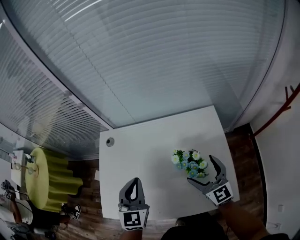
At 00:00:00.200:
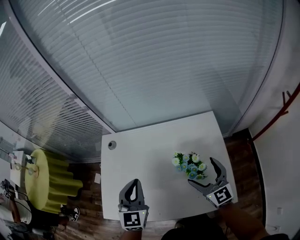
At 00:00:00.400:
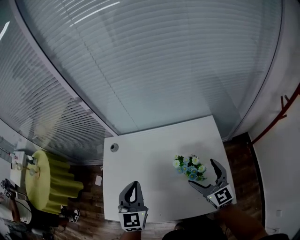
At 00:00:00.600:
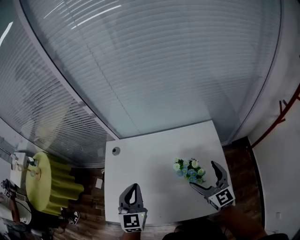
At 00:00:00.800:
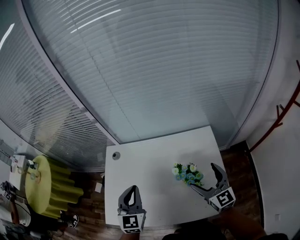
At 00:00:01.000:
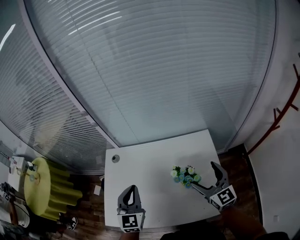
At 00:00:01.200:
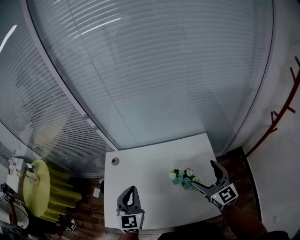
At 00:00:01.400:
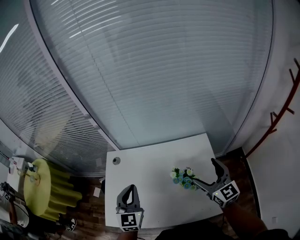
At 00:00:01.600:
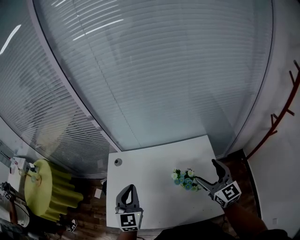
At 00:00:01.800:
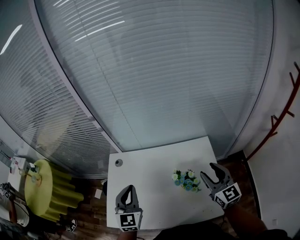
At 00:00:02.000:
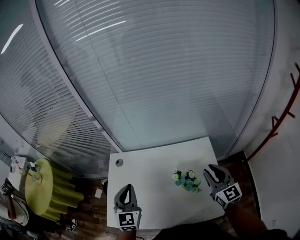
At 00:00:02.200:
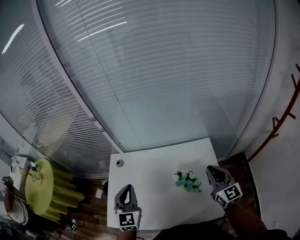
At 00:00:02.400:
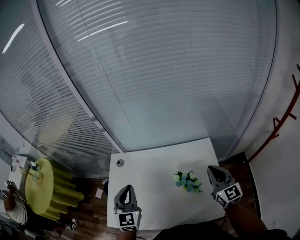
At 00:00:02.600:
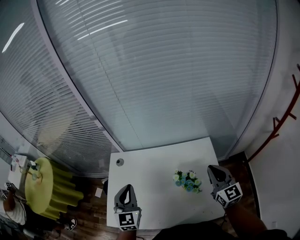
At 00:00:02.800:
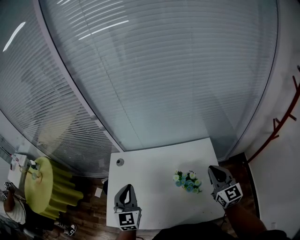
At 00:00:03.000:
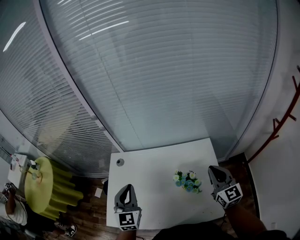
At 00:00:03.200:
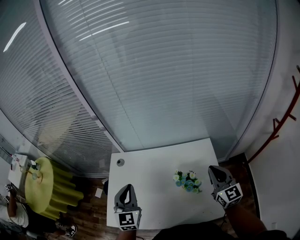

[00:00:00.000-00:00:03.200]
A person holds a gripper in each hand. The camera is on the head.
00:00:00.000 to 00:00:01.600: The left gripper moves upward, roughly 10 cm, while the right gripper travels upward by about 15 cm.
00:00:01.600 to 00:00:03.200: The right gripper closes.

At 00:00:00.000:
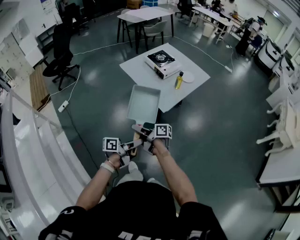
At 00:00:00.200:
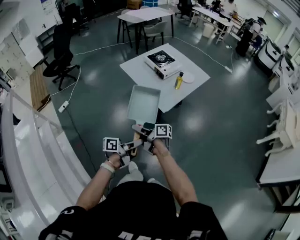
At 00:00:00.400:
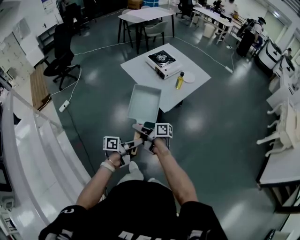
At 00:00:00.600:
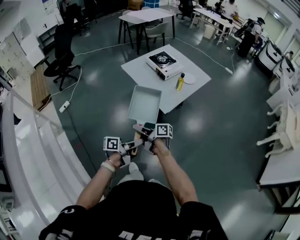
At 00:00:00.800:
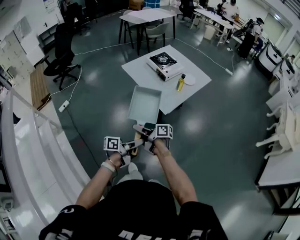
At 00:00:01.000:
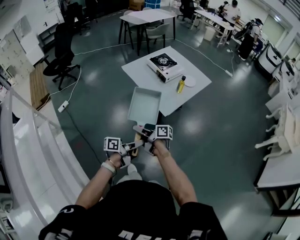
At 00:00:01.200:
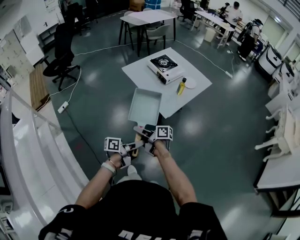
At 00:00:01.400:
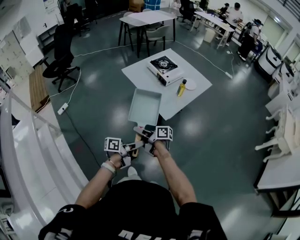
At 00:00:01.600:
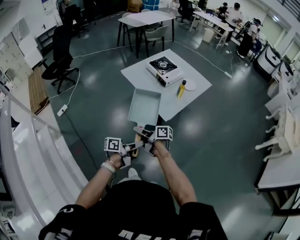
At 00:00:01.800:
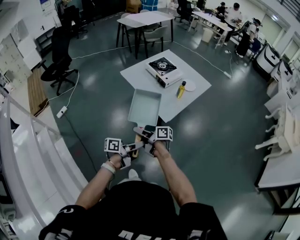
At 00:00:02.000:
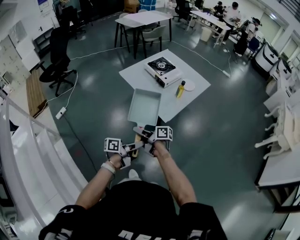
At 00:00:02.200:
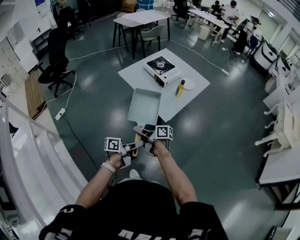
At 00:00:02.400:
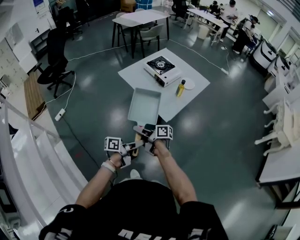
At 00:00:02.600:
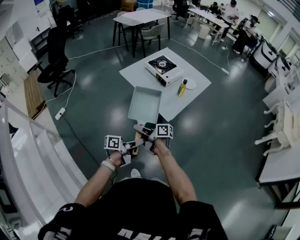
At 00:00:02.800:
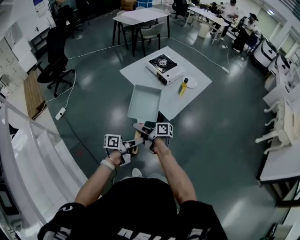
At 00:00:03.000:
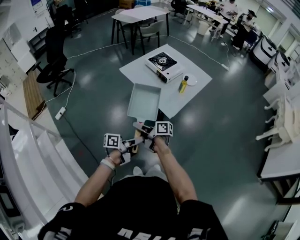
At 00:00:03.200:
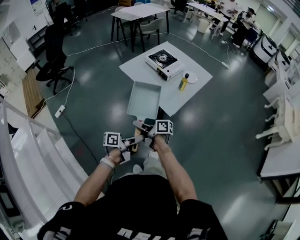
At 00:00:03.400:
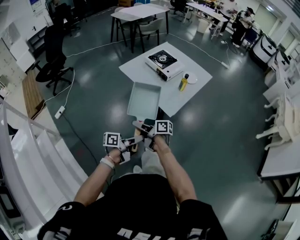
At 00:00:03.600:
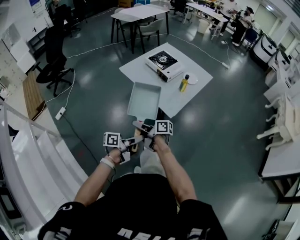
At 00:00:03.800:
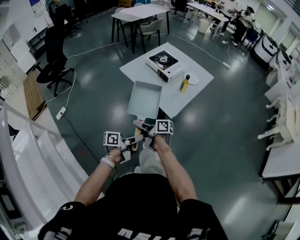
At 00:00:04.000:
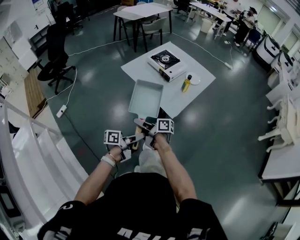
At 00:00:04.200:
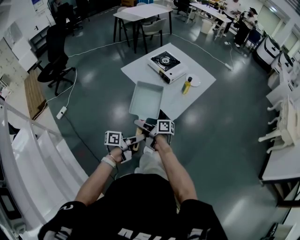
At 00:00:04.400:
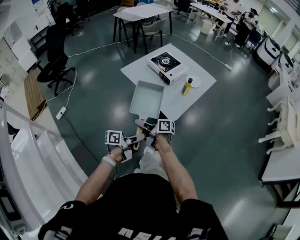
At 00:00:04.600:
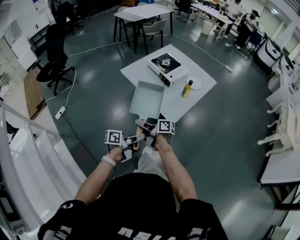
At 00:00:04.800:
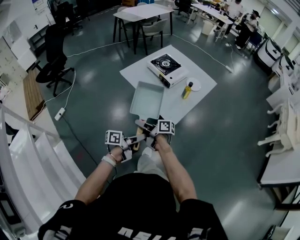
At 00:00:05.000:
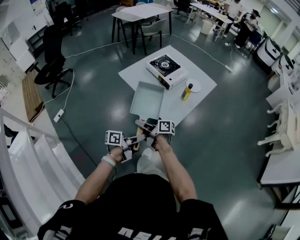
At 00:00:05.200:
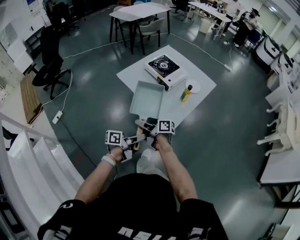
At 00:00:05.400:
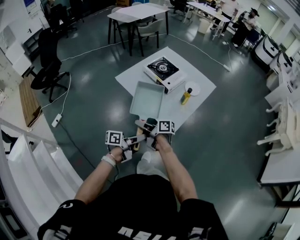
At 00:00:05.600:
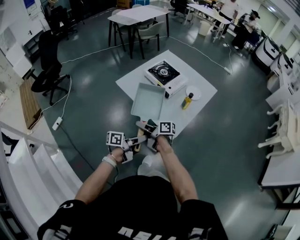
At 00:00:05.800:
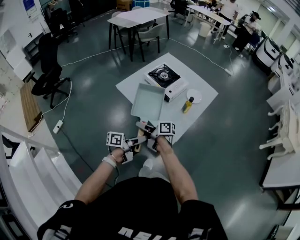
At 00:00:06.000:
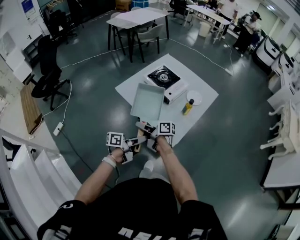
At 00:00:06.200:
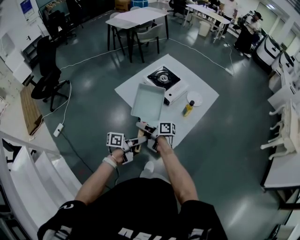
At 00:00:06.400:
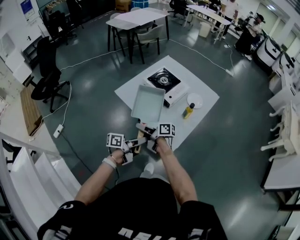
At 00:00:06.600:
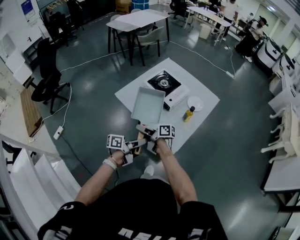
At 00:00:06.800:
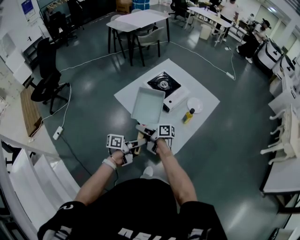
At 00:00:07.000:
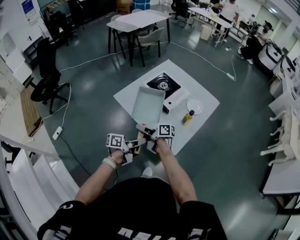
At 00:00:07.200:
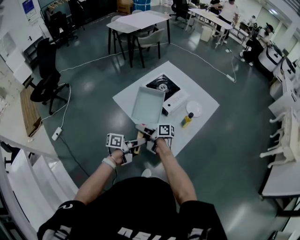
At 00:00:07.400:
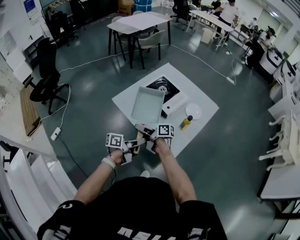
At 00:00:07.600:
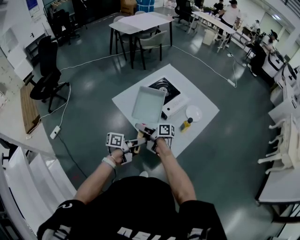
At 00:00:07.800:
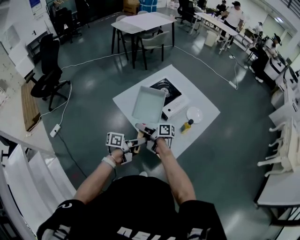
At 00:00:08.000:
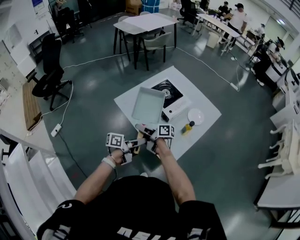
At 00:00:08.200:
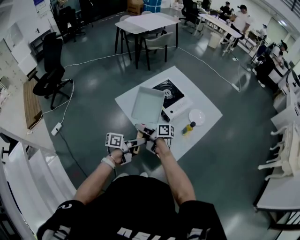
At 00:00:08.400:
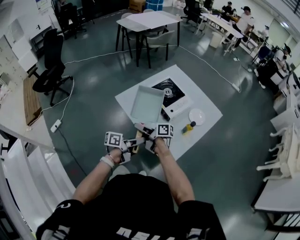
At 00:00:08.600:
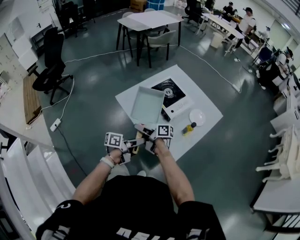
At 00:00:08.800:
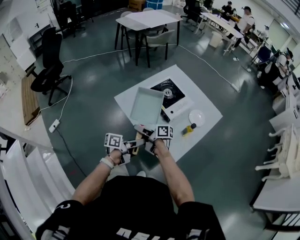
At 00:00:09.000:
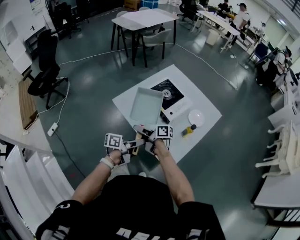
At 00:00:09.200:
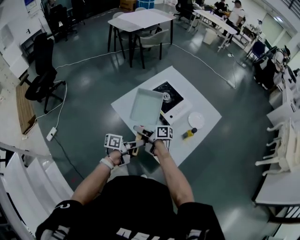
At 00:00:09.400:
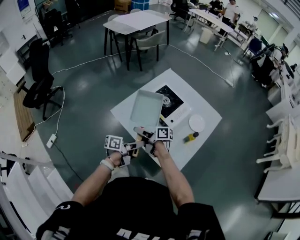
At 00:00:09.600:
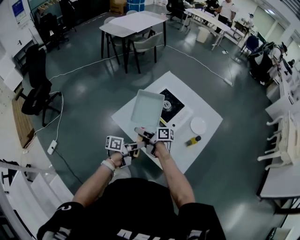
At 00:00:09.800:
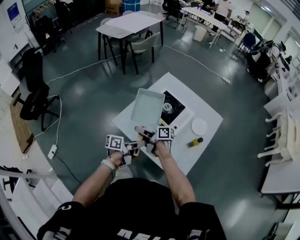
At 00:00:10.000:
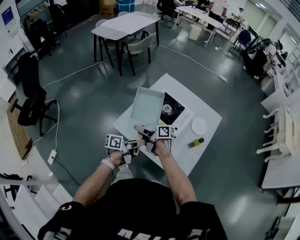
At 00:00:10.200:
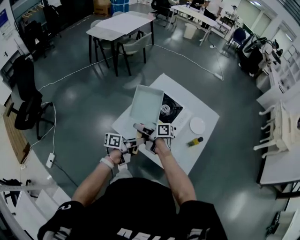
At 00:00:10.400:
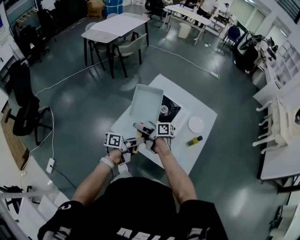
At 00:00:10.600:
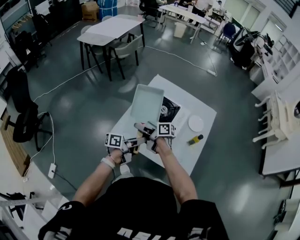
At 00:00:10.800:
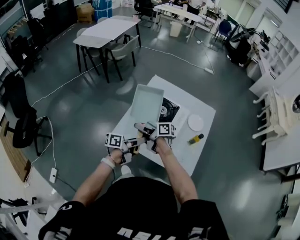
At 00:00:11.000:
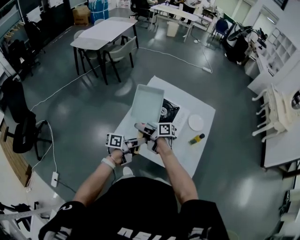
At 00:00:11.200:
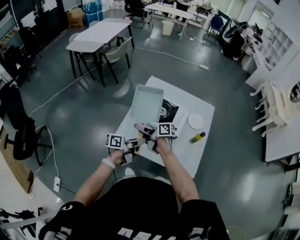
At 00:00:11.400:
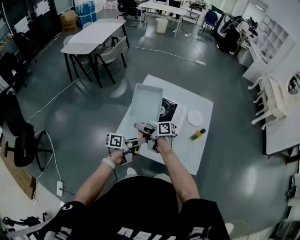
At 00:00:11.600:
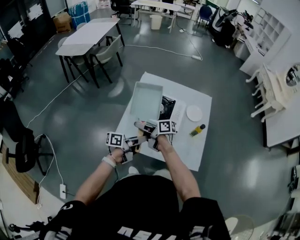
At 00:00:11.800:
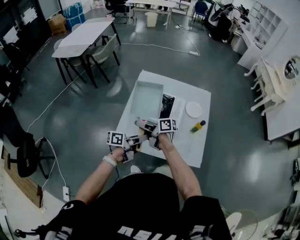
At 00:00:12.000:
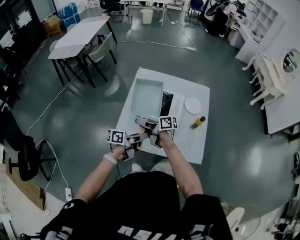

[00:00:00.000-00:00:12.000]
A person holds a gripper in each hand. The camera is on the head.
00:00:00.000 to 00:00:01.600: Both grippers move forward, some 5 cm.
00:00:01.600 to 00:00:03.000: The right gripper ends up about 5 cm from where it was, while the left gripper shifts some 5 cm to the left.
00:00:03.000 to 00:00:04.400: The two grippers go approximately 5 cm forward.
00:00:04.400 to 00:00:06.000: The right gripper moves roughly 20 cm. Meanwhile the left gripper shifts by about 20 cm.
00:00:06.000 to 00:00:07.600: Both grippers move forward, some 10 cm.
00:00:07.600 to 00:00:09.000: The right gripper moves approximately 5 cm. Meanwhile the left gripper ends up roughly 5 cm from where it was.
00:00:09.000 to 00:00:10.400: The left gripper changes place by approximately 20 cm, while the right gripper ends up about 20 cm from where it was.
00:00:10.400 to 00:00:12.000: The left gripper ends up some 5 cm from where it was. Meanwhile the right gripper ends up approximately 5 cm from where it was.

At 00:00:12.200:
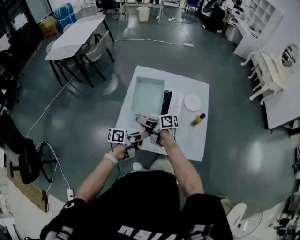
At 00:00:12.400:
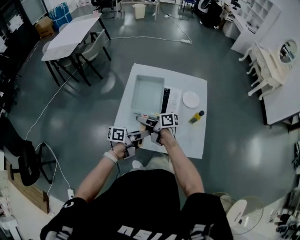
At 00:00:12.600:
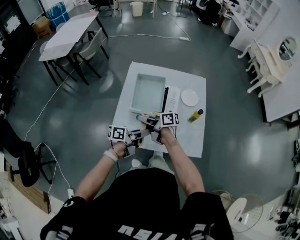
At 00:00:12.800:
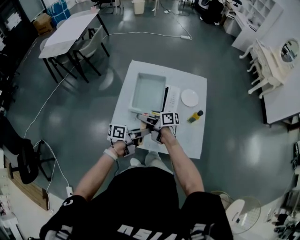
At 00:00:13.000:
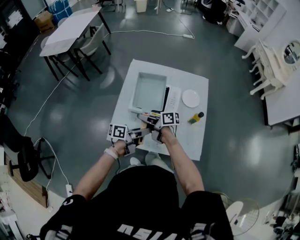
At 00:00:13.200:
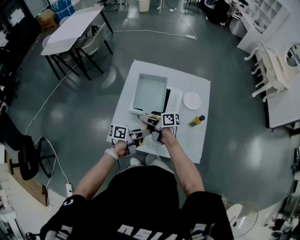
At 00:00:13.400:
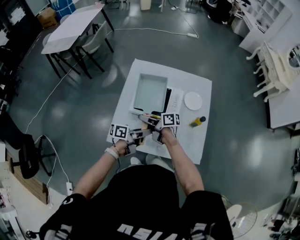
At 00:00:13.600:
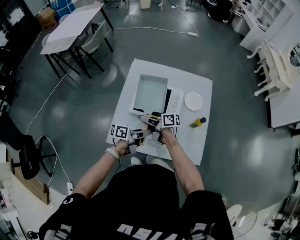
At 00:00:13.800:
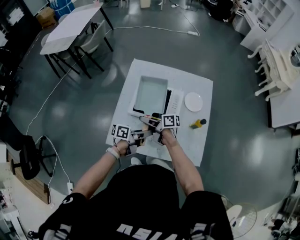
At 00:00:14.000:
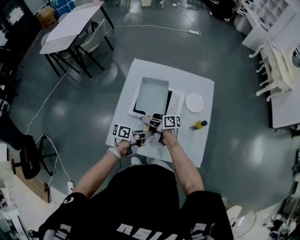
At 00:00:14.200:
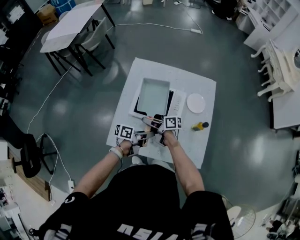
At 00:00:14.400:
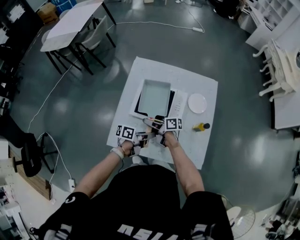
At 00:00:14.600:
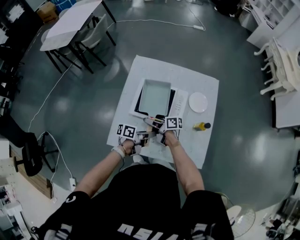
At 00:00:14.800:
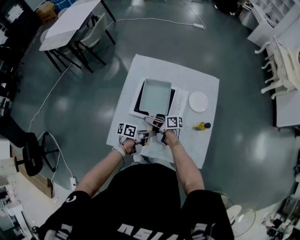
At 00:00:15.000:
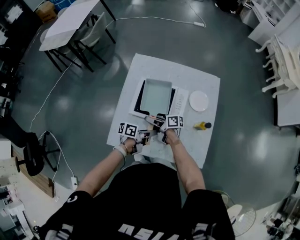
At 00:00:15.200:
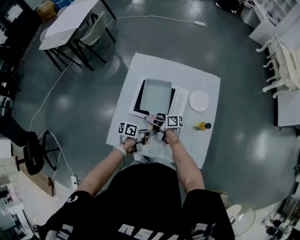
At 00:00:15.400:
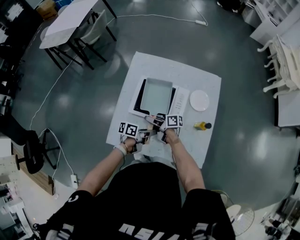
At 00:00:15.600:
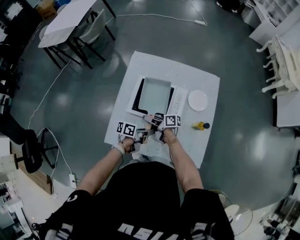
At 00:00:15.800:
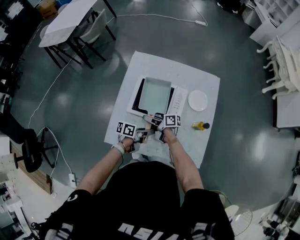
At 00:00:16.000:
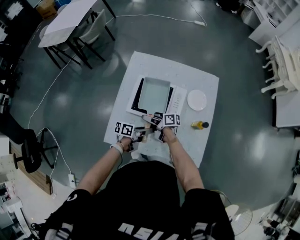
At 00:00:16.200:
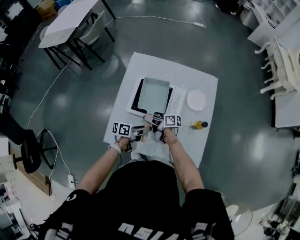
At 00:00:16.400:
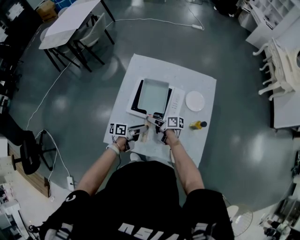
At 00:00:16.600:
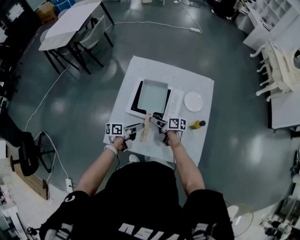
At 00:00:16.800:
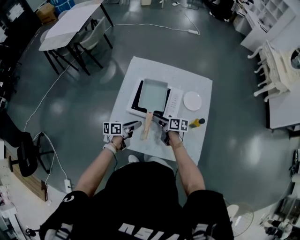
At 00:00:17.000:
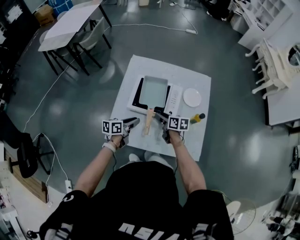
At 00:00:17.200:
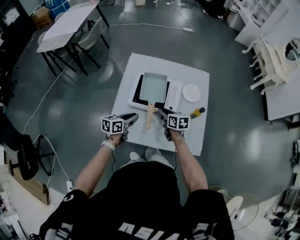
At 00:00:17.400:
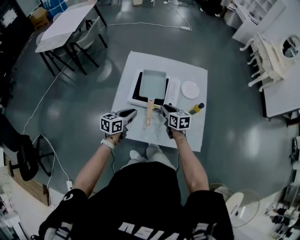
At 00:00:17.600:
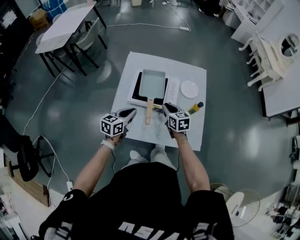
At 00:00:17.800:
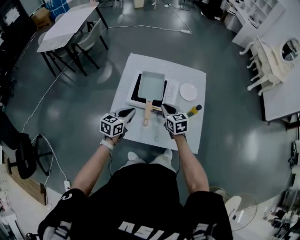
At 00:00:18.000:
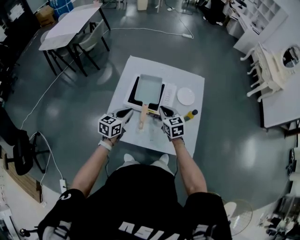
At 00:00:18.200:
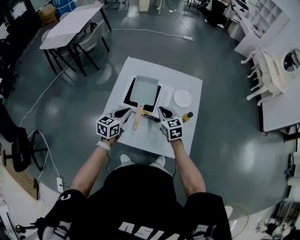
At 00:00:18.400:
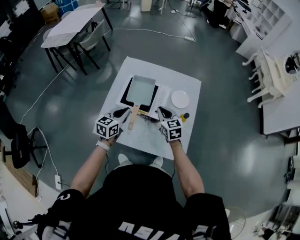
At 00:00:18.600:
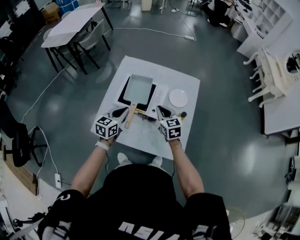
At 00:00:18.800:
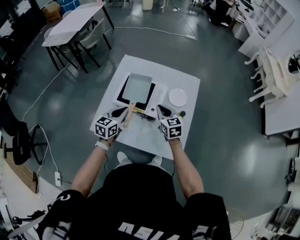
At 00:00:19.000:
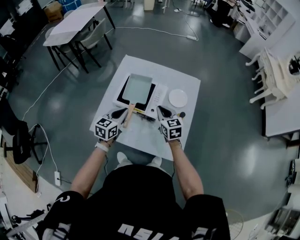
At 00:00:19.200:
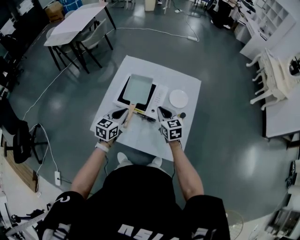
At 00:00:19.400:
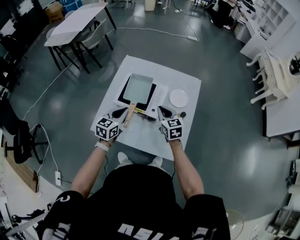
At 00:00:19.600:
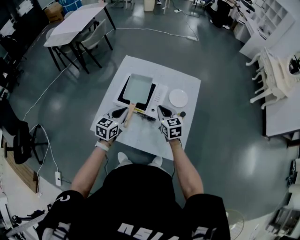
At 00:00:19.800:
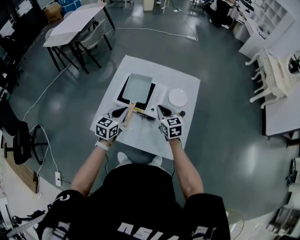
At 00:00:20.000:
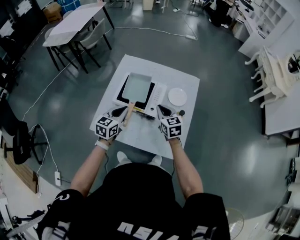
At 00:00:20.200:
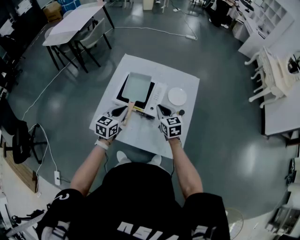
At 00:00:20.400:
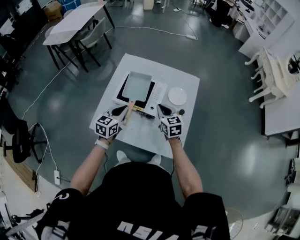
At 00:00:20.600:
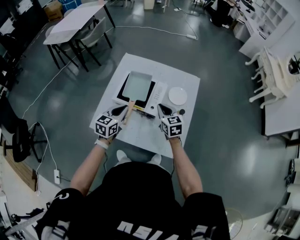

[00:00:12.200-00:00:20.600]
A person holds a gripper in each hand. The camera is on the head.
00:00:12.200 to 00:00:13.600: The left gripper changes place by about 10 cm. The right gripper shifts by about 10 cm.
00:00:13.600 to 00:00:15.000: The grippers both shift downward by some 10 cm.
00:00:15.000 to 00:00:16.400: The grippers make only small movements.
00:00:16.400 to 00:00:17.800: The right gripper is displaced upward and to the right by roughly 15 cm, twists roughly 50 degrees counterclockwise, seen from behind, and closes up, while the left gripper heads upward and to the left, covering some 15 cm, twists roughly 50 degrees clockwise, seen from behind, and closes up.
00:00:17.800 to 00:00:19.200: The two grippers go some 10 cm to the right.
00:00:19.200 to 00:00:20.600: Both grippers stay about where they are.
